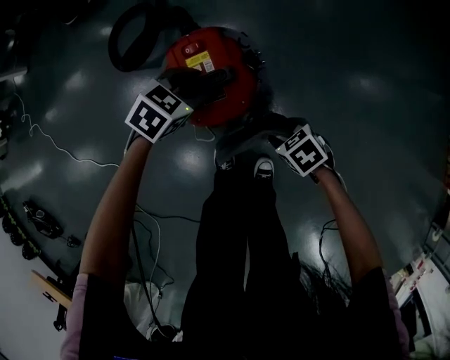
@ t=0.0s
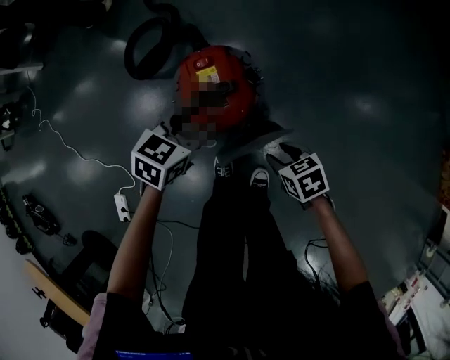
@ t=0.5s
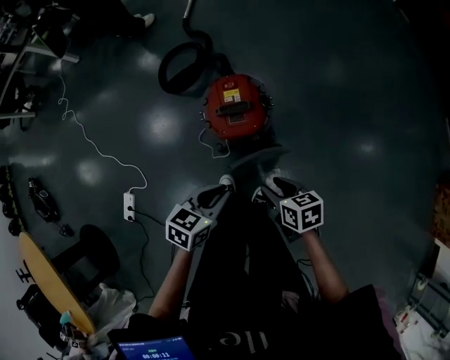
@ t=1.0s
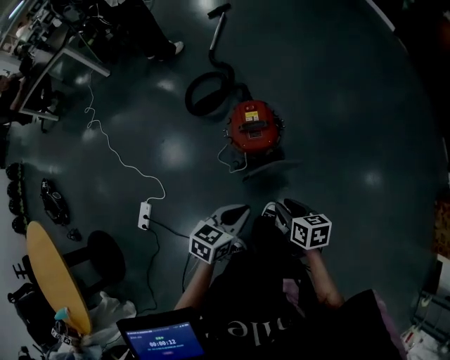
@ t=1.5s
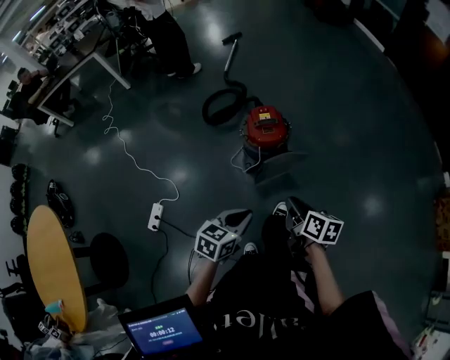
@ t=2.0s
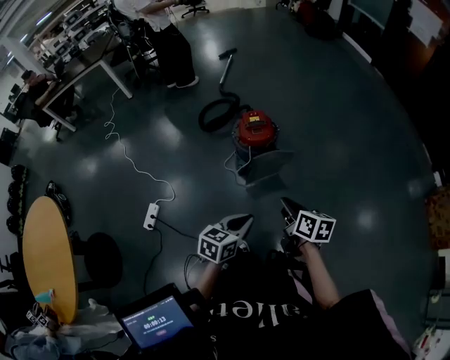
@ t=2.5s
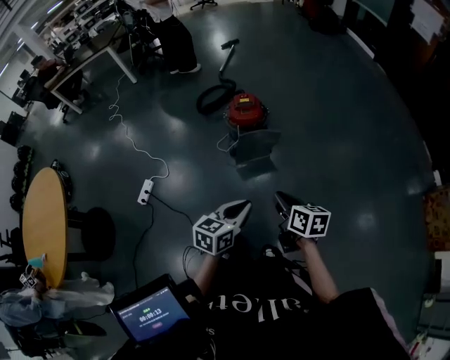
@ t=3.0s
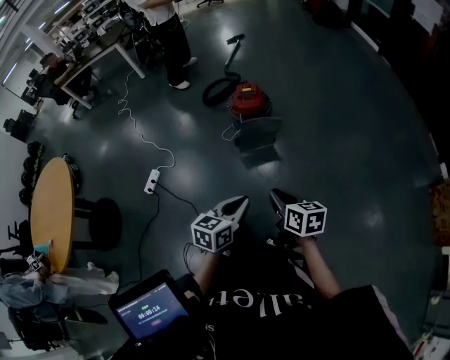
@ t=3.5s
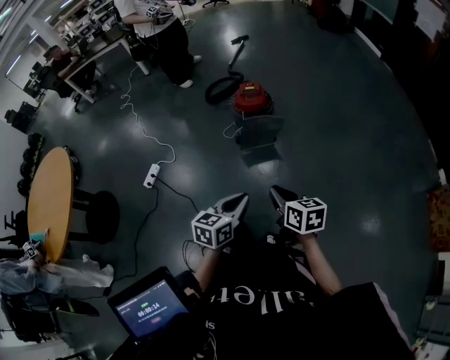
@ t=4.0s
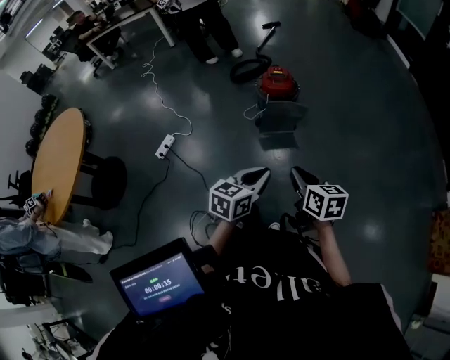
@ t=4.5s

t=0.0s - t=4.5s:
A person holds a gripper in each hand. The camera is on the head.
t=0.0s - t=2.0s: The right gripper travels upward by roughly 40 cm, tips its fingers upward by roughly 40 degrees, and closes up, while the left gripper moves approximately 70 cm, turns by roughly 40 degrees, and closes its fingers.
t=2.0s - t=4.5s: The right gripper heads backward, covering approximately 35 cm, and swivels about 30 degrees; the left gripper goes about 35 cm backward and to the right, and rotates about 20 degrees.

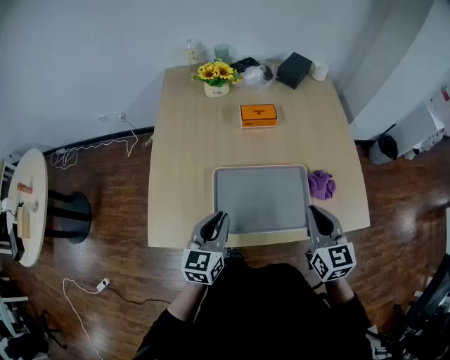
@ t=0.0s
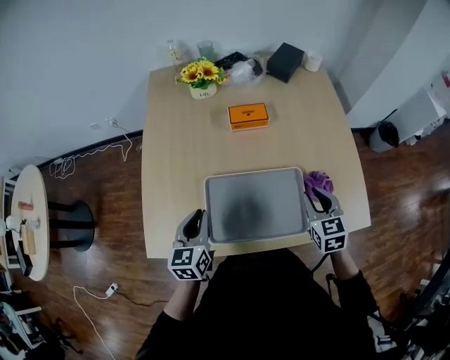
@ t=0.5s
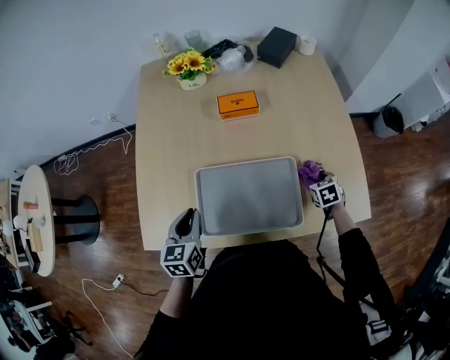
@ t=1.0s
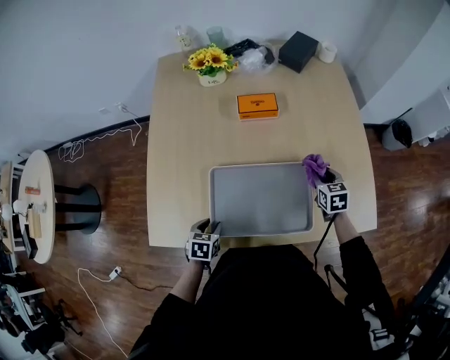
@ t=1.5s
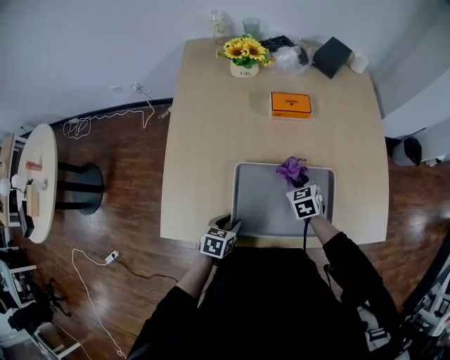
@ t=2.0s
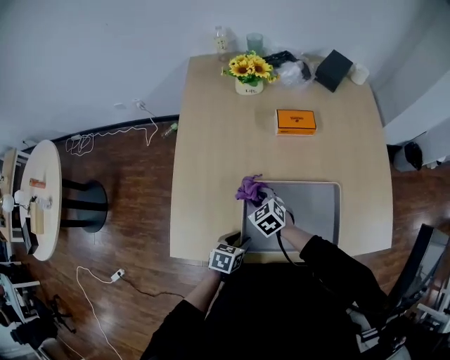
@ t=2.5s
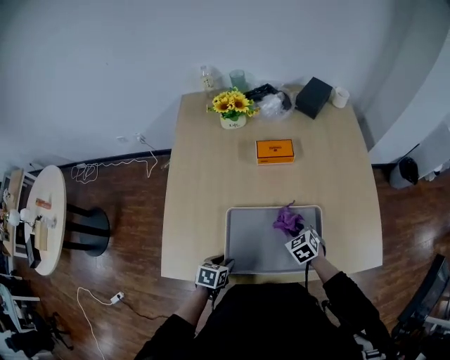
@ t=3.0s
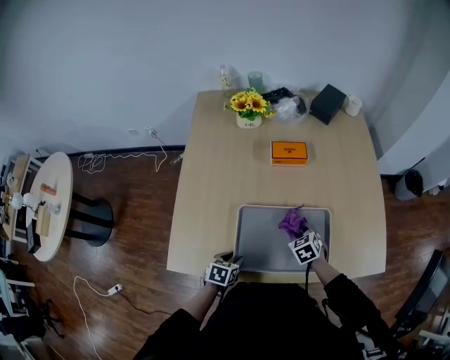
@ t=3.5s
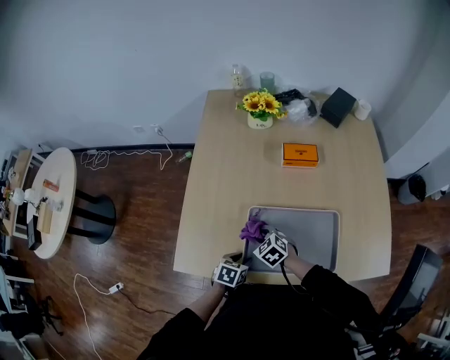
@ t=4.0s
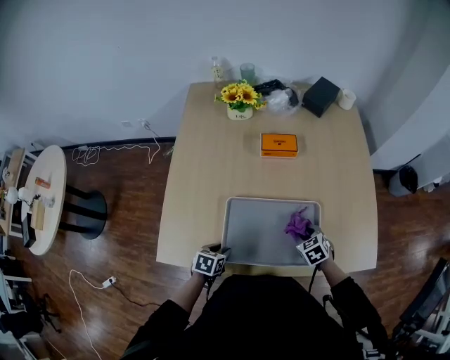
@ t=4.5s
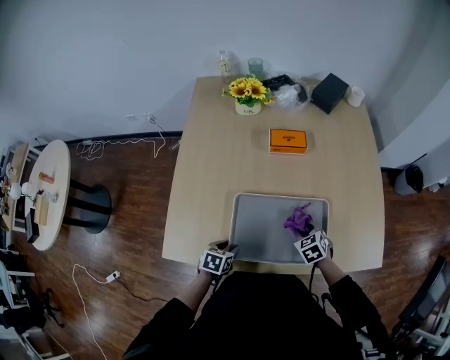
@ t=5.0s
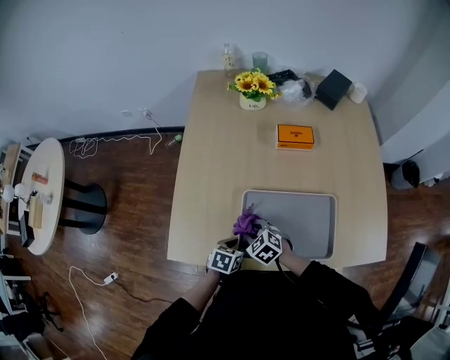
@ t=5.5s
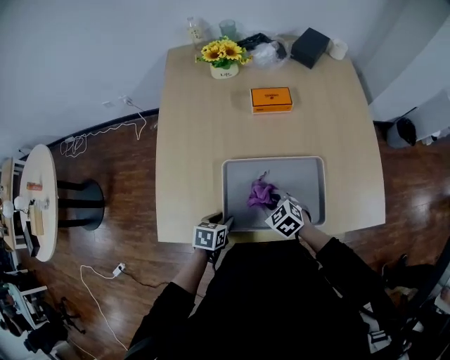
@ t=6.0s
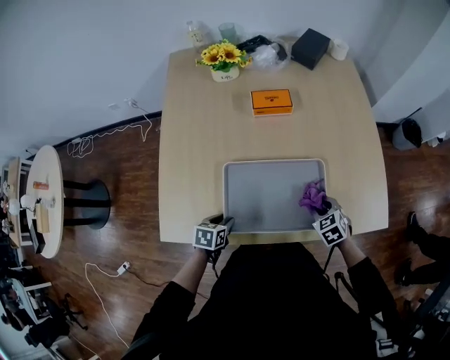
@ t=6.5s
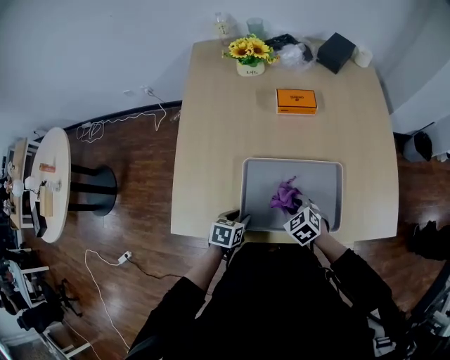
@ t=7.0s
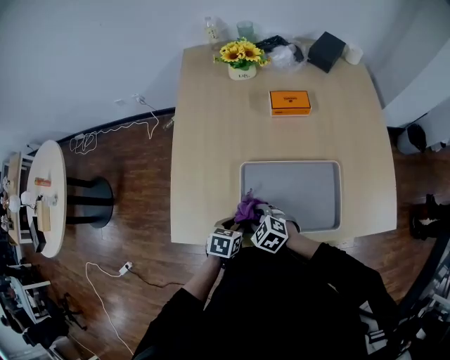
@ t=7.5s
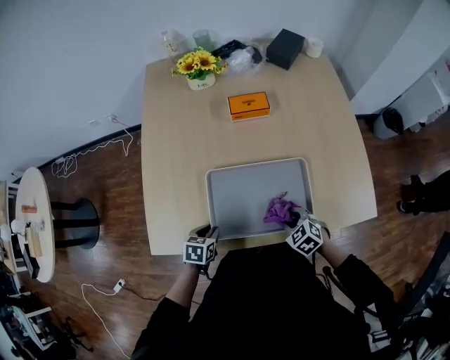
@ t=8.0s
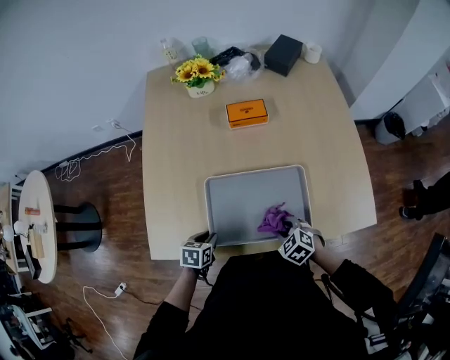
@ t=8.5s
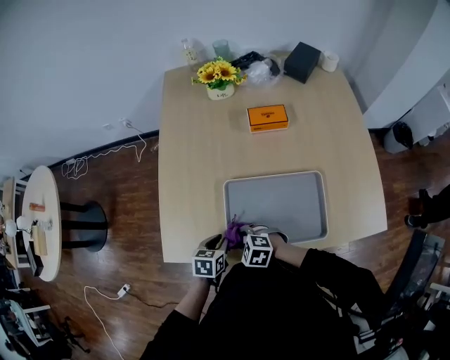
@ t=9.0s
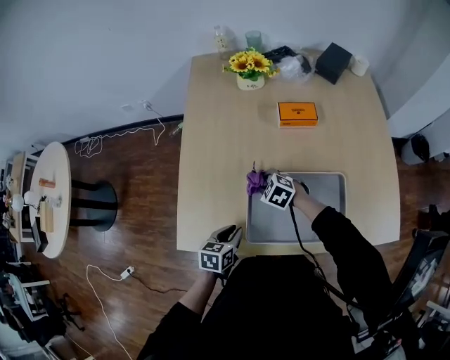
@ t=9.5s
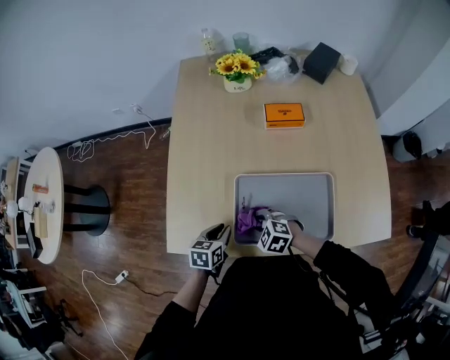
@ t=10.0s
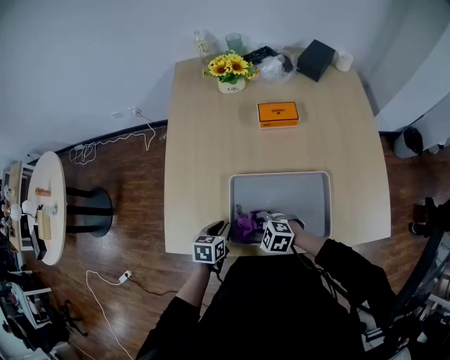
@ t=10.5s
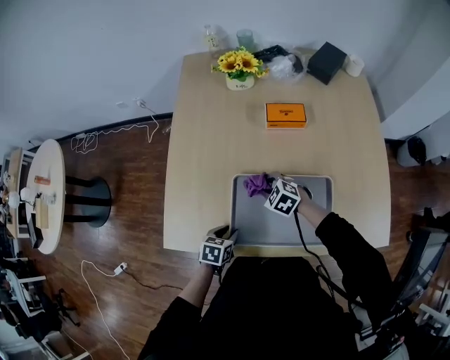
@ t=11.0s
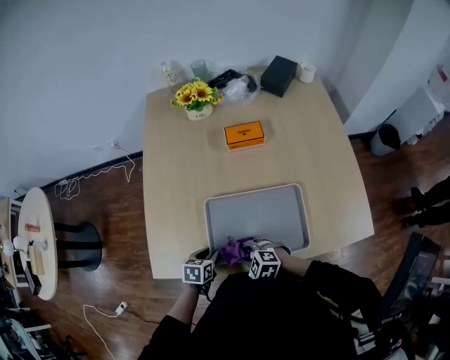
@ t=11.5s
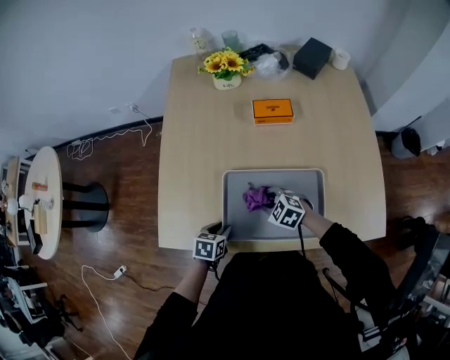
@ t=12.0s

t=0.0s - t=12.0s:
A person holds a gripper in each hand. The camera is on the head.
t=0.0s - t=2.0s: The right gripper goes about 30 cm downward and forward, and turns by roughly 30 degrees. Meanwhile the left gripper shifts roughly 20 cm downward, tilts its fingers about 30 degrees downward, and opens its fingers.
t=2.0s - t=4.0s: The right gripper goes left and right, some 25 cm each way, reversing 2 times, and changes its angle by some 30 degrees.
t=4.0s - t=6.0s: The right gripper swings left and right, some 25 cm each way, with 2 reversals.
t=6.0s - t=8.0s: The right gripper moves left and right over roughly 30 cm, changing direction 2 times.
t=8.0s - t=10.0s: The left gripper ends up some 5 cm from where it was. Meanwhile the right gripper shifts about 20 cm to the left, and swivels about 30 degrees.
t=10.0s - t=12.0s: The right gripper moves forward and backward over approximately 20 cm, changing direction 2 times. The left gripper moves about 5 cm.

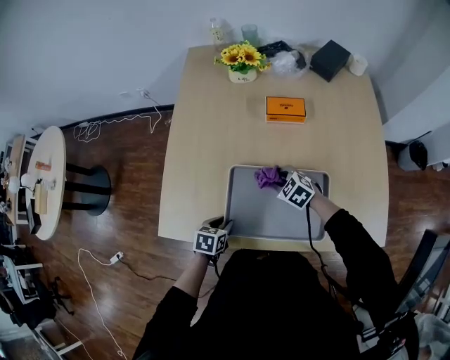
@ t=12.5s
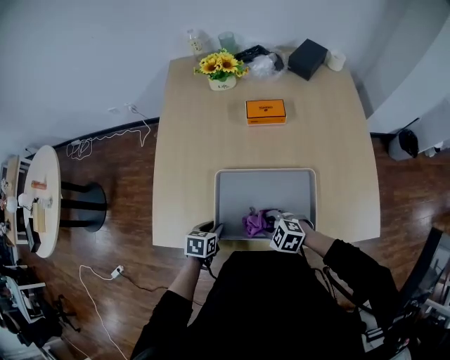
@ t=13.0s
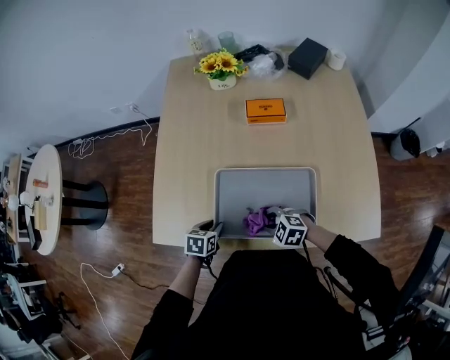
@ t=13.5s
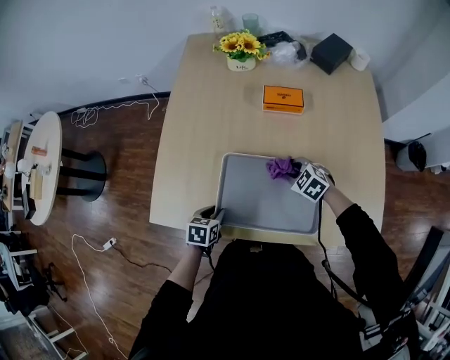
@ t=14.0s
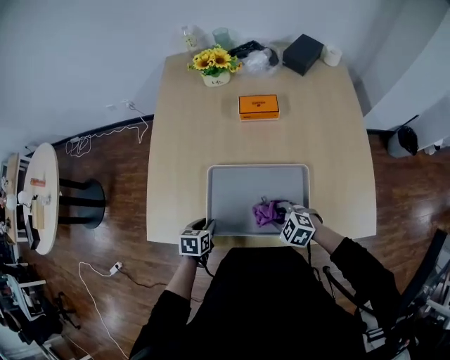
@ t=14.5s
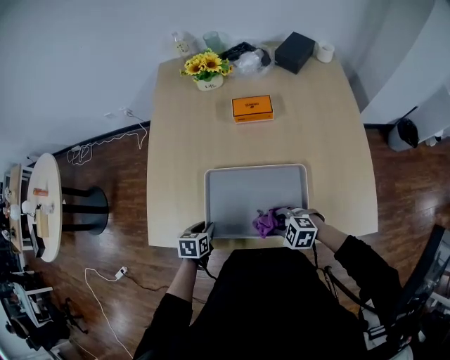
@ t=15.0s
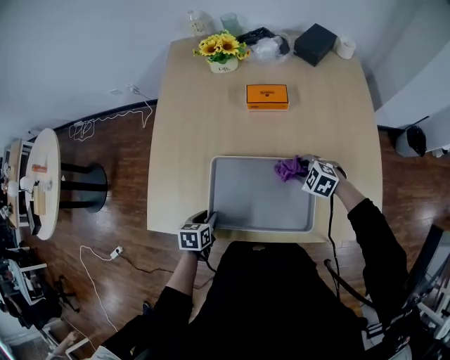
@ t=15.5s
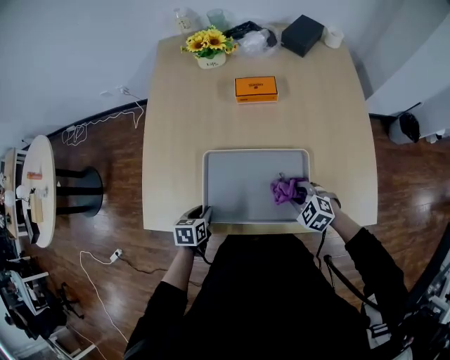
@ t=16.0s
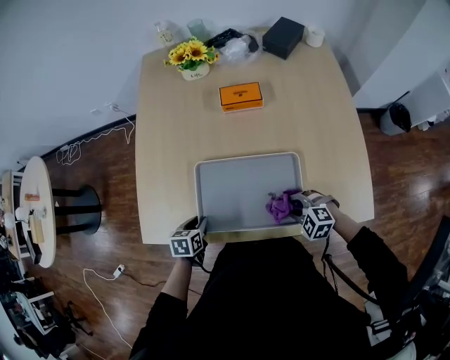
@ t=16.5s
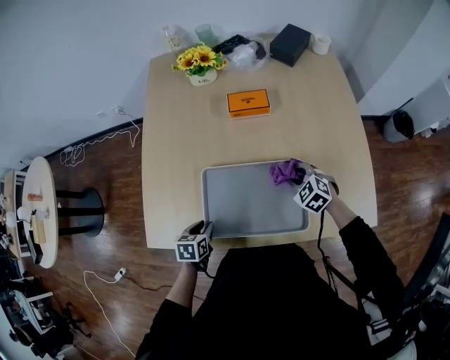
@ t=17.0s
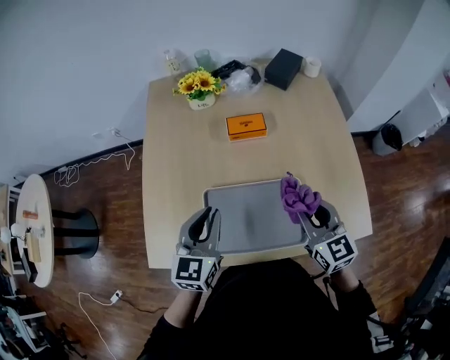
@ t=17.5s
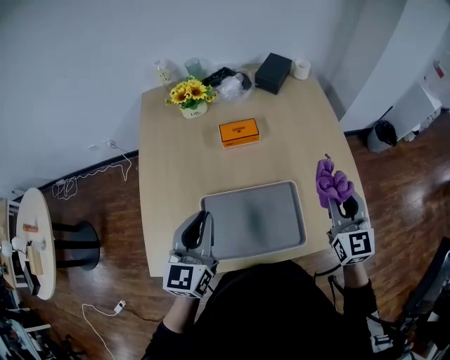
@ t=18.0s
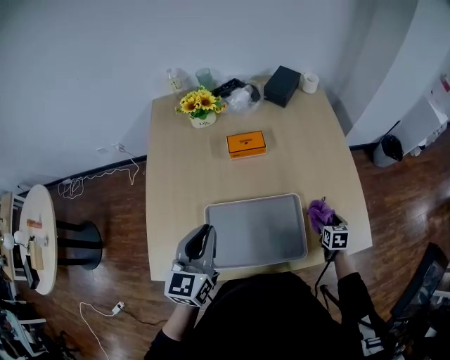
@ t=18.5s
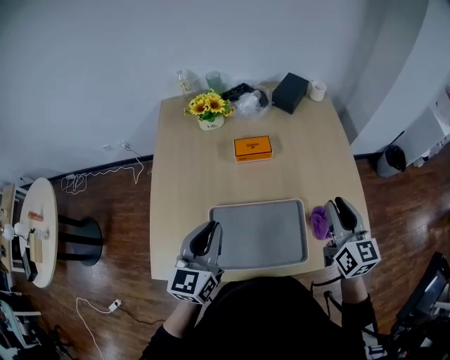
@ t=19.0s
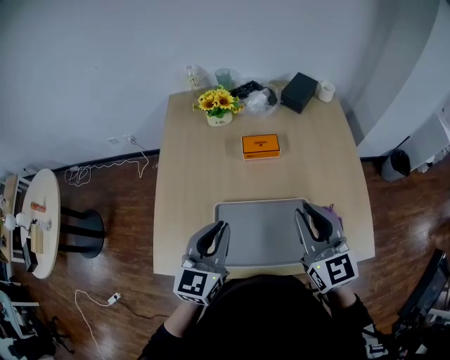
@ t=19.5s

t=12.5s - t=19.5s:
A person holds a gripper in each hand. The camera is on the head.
t=12.5s - t=14.5s: The right gripper swings forward and backward, about 15 cm each way, with 2 reversals.
t=14.5s - t=16.0s: The right gripper goes roughly 10 cm to the right, and travels forward and back again, roughly 10 cm each way.
t=16.0s - t=17.5s: The two grippers go roughly 25 cm upward. The left gripper tips its fingers upward by approximately 40 degrees. Meanwhile the right gripper tips its fingers upward by about 40 degrees.
t=17.5s - t=19.5s: The right gripper swings up and down, approximately 35 cm each way, with 2 reversals, and opens, then closes once more.

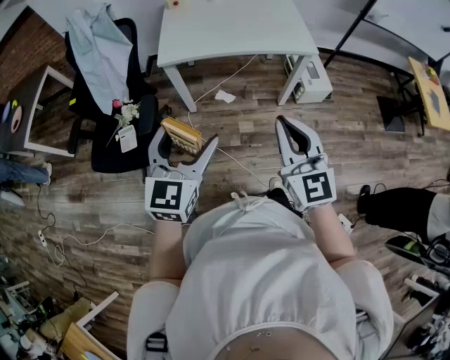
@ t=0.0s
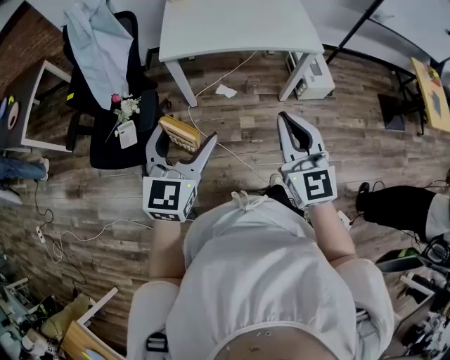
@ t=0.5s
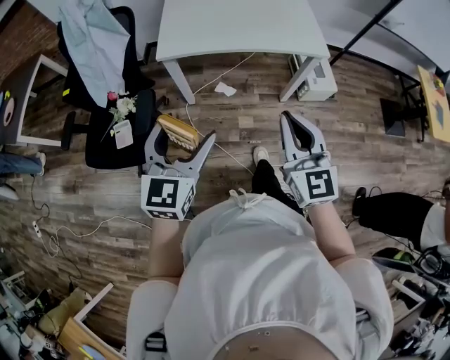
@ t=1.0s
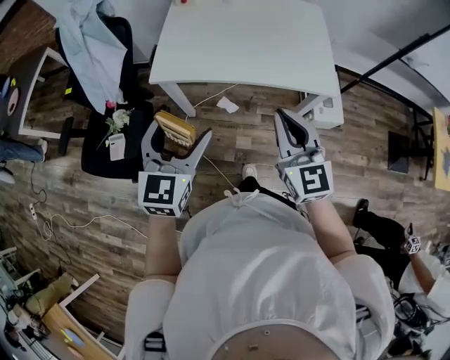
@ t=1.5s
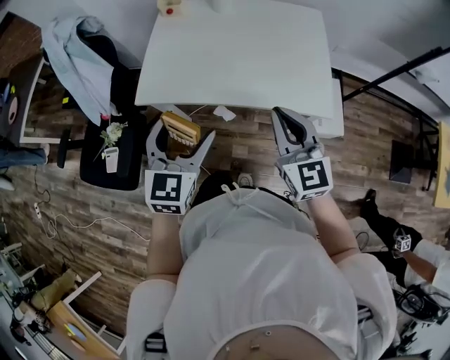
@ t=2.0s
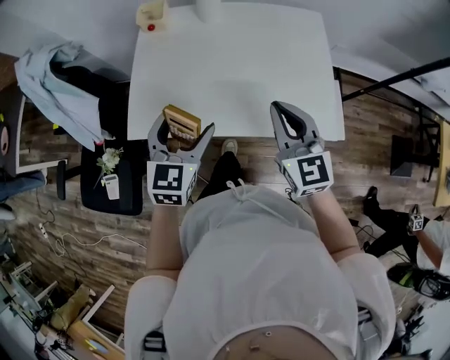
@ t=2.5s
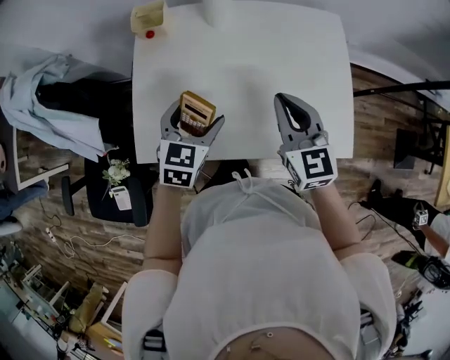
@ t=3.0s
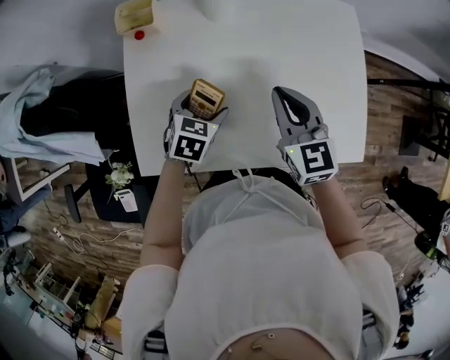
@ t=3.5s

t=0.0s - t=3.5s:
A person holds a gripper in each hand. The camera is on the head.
t=0.0s - t=2.0s: The grippers both shift forward by approximately 35 cm.
t=2.0s - t=3.5s: The left gripper heads forward and downward, covering roughly 40 cm, and tilts its fingers roughly 40 degrees downward, while the right gripper travels forward by some 30 cm.
